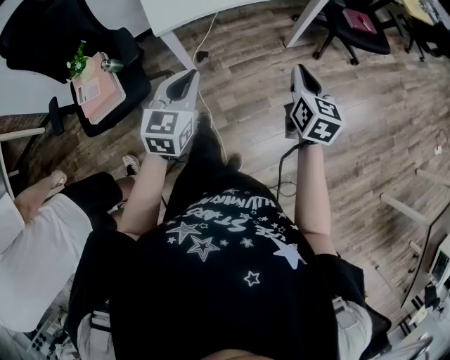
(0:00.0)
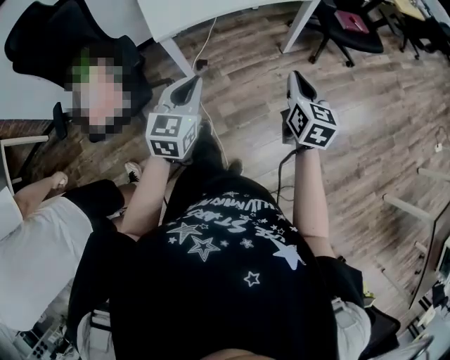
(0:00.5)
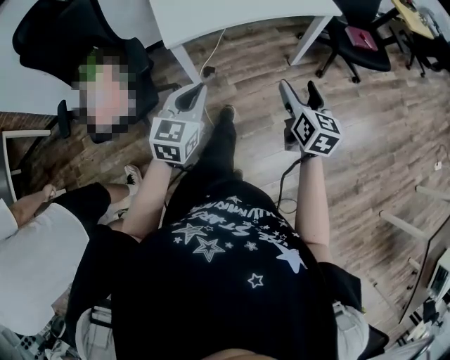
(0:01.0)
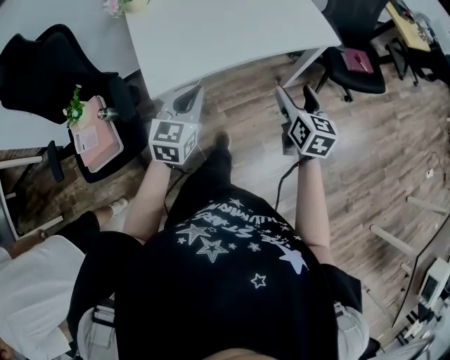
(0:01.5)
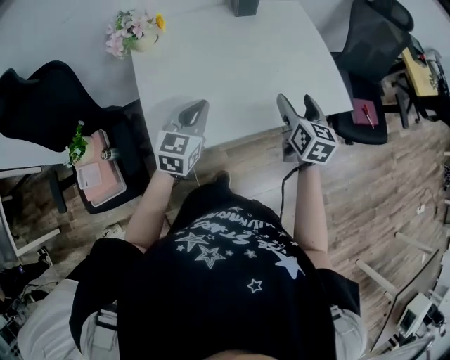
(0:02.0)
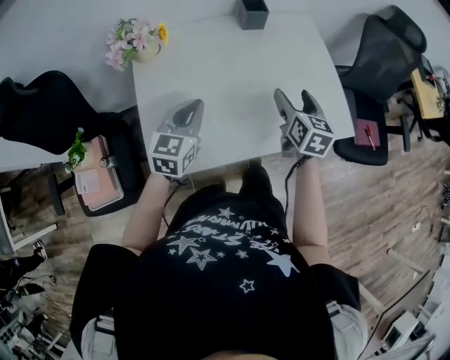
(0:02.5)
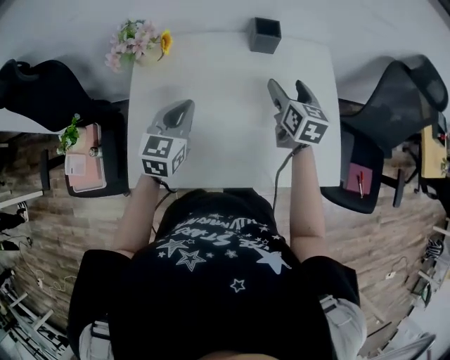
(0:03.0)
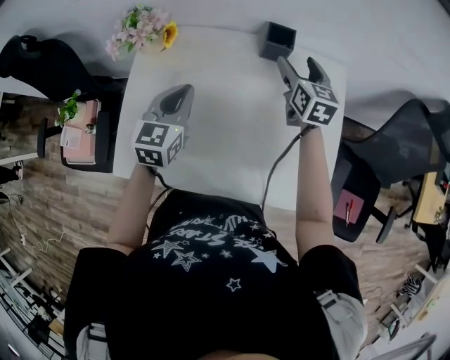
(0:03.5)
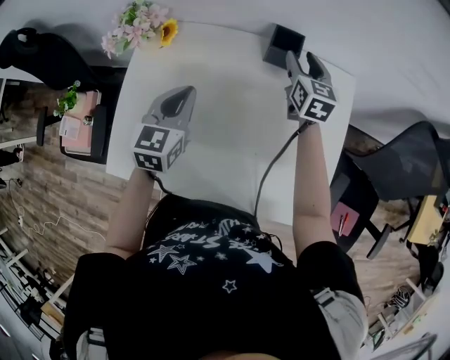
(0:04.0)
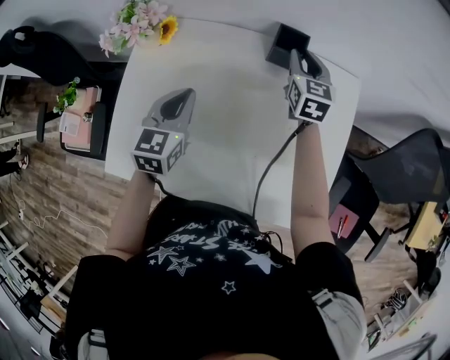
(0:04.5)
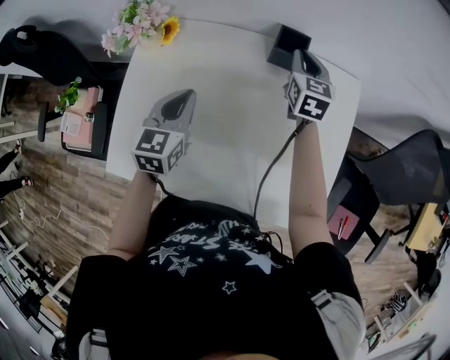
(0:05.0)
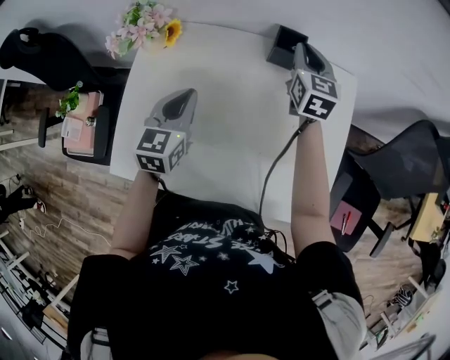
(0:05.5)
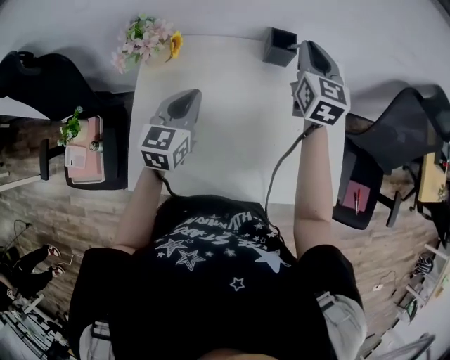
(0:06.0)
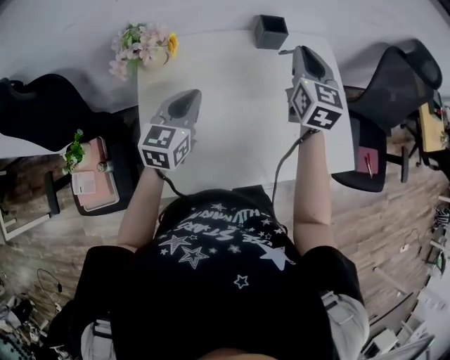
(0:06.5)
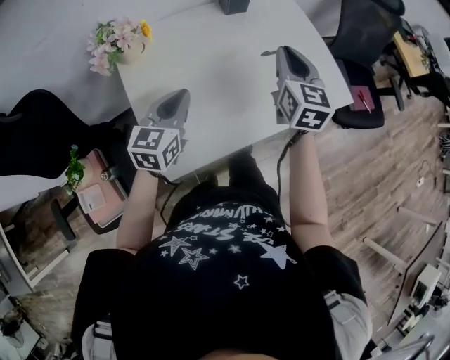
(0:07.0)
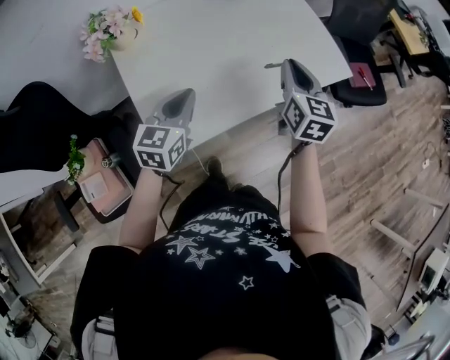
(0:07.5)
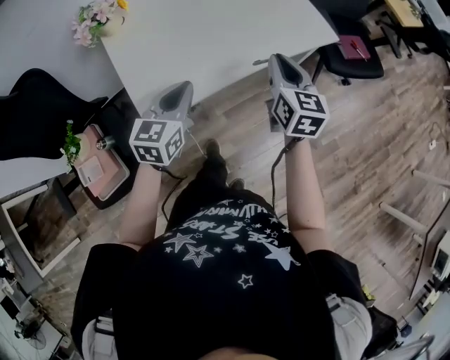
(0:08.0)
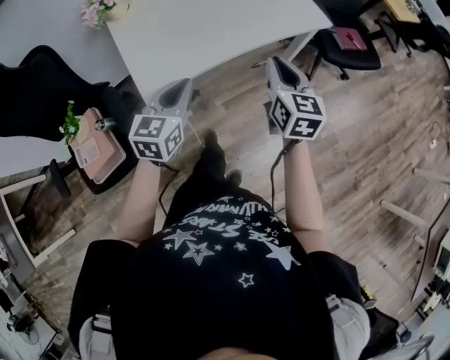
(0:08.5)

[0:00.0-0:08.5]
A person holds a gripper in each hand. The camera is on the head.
0:00.0 to 0:02.0: The two grippers go about 40 cm forward. The right gripper opens its fingers.
0:02.0 to 0:04.0: The left gripper changes place by roughly 25 cm, and turns by approximately 30 degrees, while the right gripper moves about 40 cm, rotates roughly 30 degrees, and closes up.
0:04.0 to 0:06.5: The right gripper is displaced backward and upward by about 20 cm, rotates approximately 20 degrees, and closes its fingers, while the left gripper is displaced to the left by roughly 5 cm, and rotates some 20 degrees.
0:06.5 to 0:08.5: The left gripper goes approximately 35 cm backward and to the right, while the right gripper goes roughly 40 cm backward.

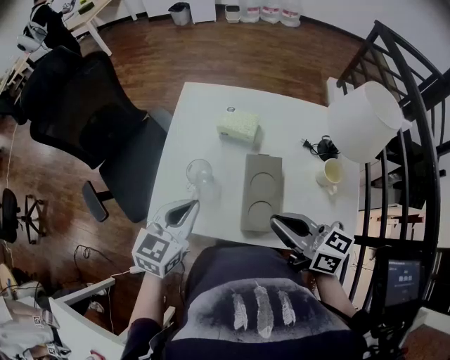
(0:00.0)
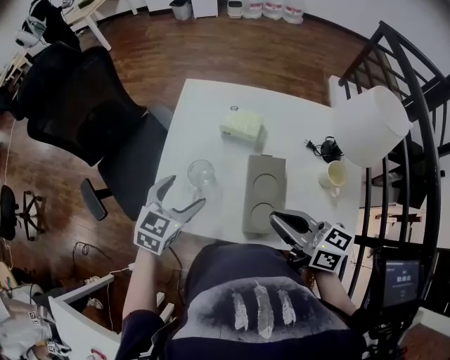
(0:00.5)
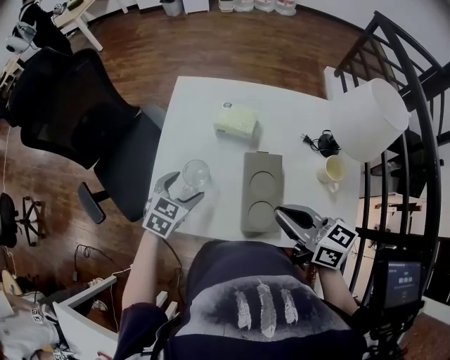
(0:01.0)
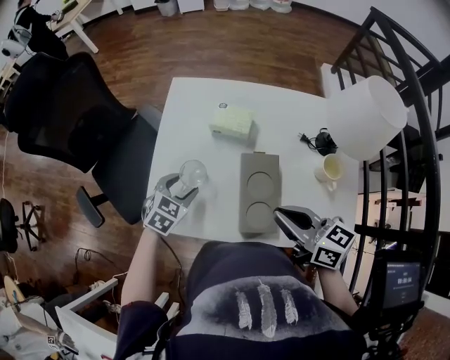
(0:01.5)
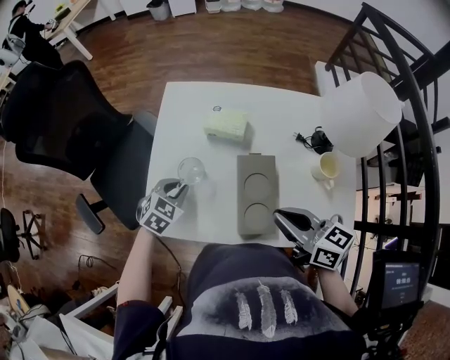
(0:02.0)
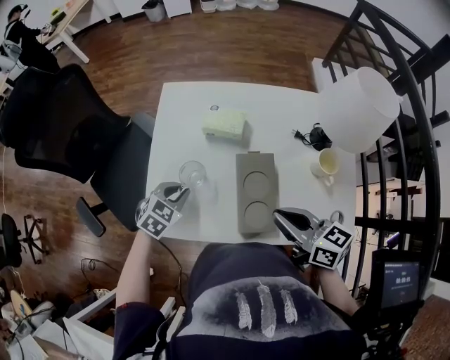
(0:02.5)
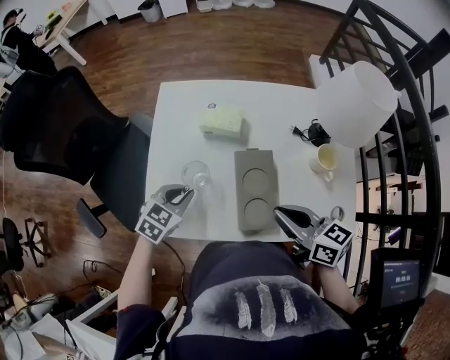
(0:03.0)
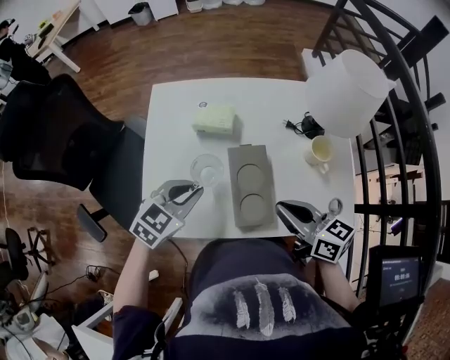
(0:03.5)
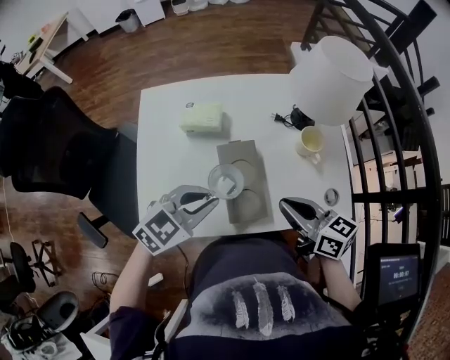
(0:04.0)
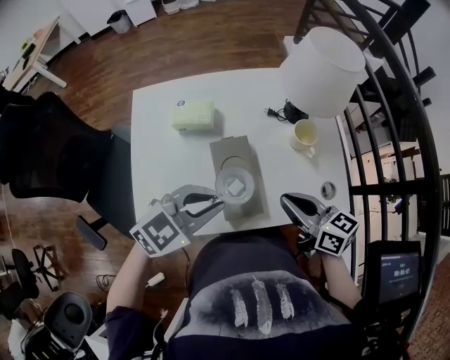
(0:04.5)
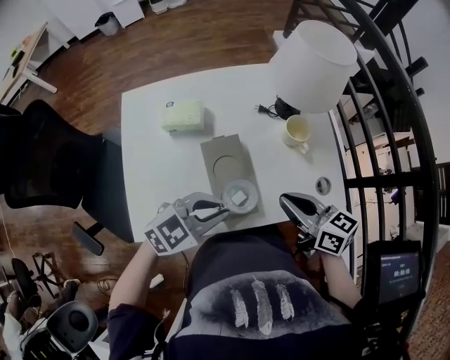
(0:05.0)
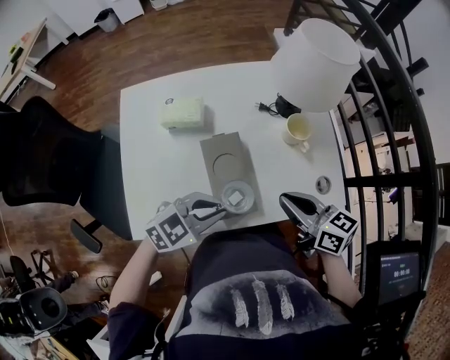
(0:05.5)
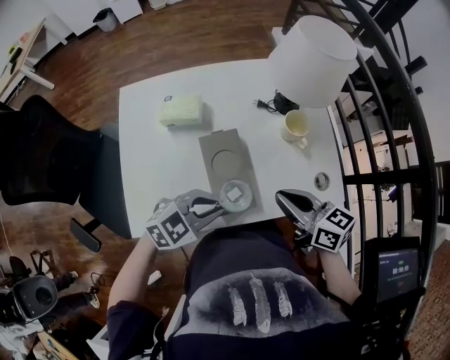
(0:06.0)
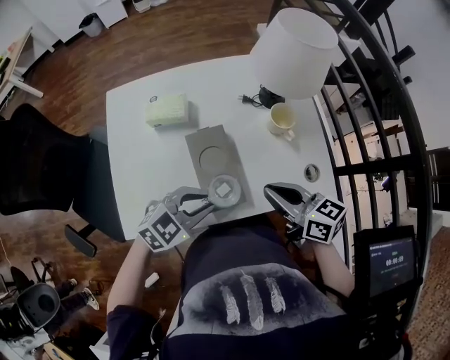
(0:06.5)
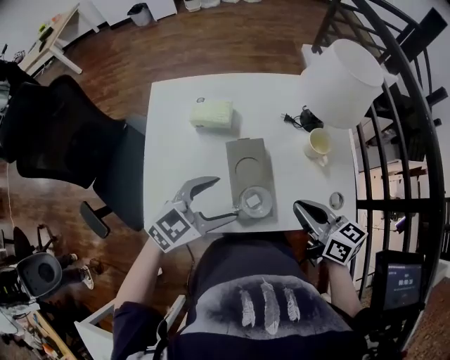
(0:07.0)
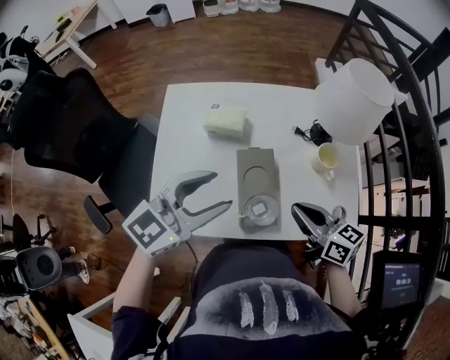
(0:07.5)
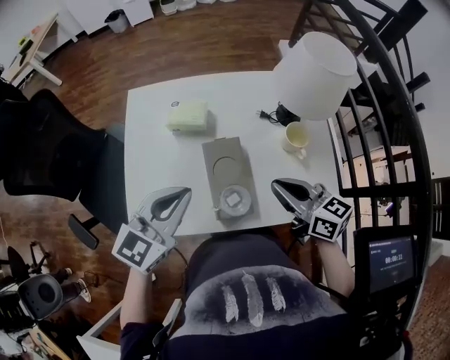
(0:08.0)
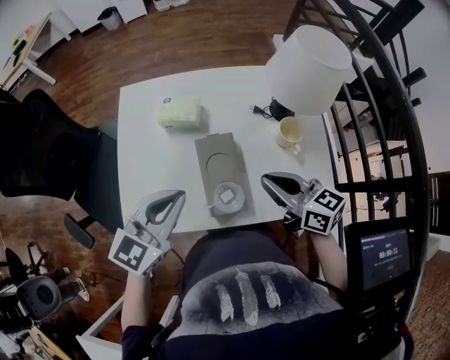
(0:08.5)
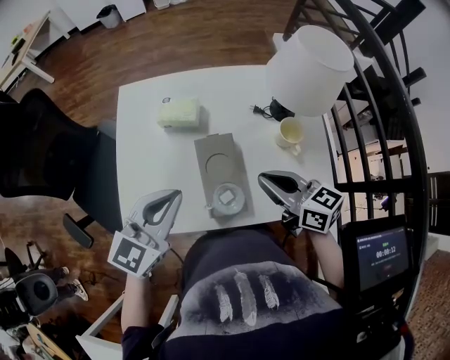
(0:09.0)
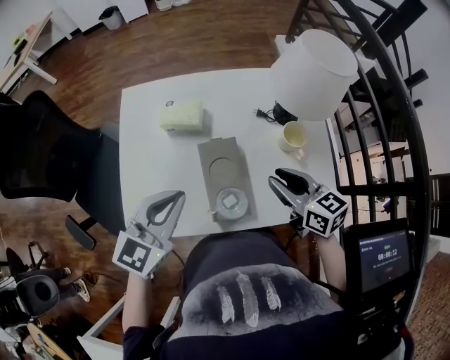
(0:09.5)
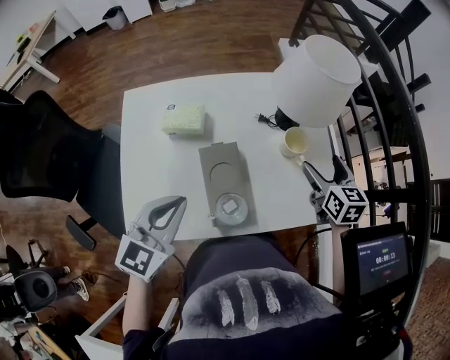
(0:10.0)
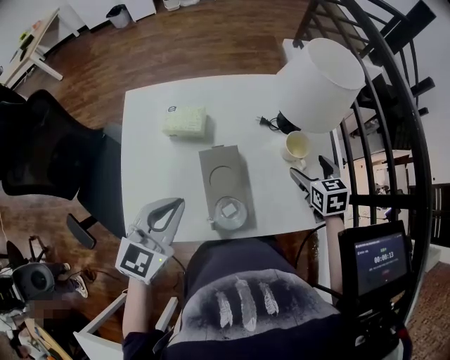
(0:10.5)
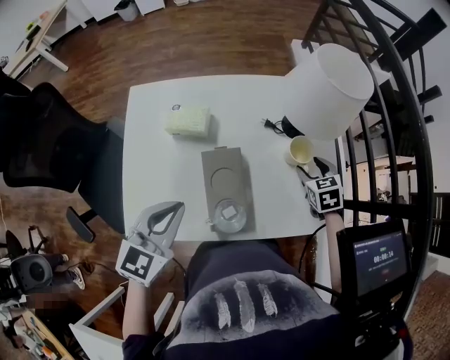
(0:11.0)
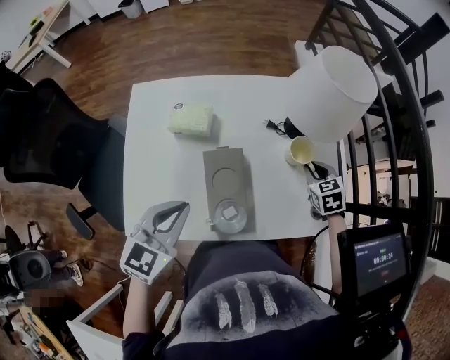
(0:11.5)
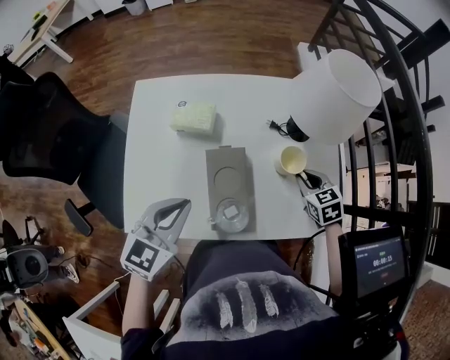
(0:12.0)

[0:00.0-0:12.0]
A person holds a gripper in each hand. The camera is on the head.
0:00.0 to 0:02.0: The left gripper heads downward and forward, covering some 20 cm, rotates approximately 30 degrees, and opens and closes again.
0:02.0 to 0:04.0: The right gripper is displaced to the right by approximately 5 cm. Meanwhile the left gripper heads to the right, upward and backward, covering approximately 20 cm, and rotates roughly 30 degrees.
0:04.0 to 0:06.0: The left gripper shifts by approximately 10 cm.
0:06.0 to 0:08.0: The left gripper heads upward, covering roughly 15 cm, rotates roughly 40 degrees, and opens, then closes once more; the right gripper moves roughly 5 cm.
0:08.0 to 0:10.0: The right gripper heads to the right and forward, covering roughly 20 cm, swivels roughly 40 degrees, and opens up.
0:10.0 to 0:12.0: The right gripper heads downward, covering roughly 10 cm, swivels about 30 degrees, and closes up.

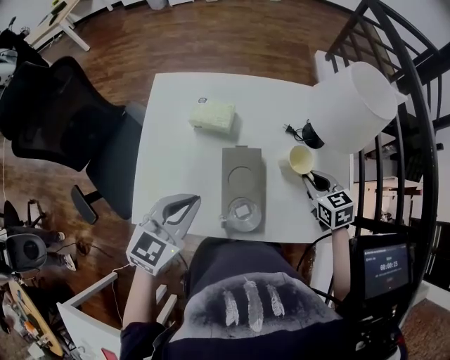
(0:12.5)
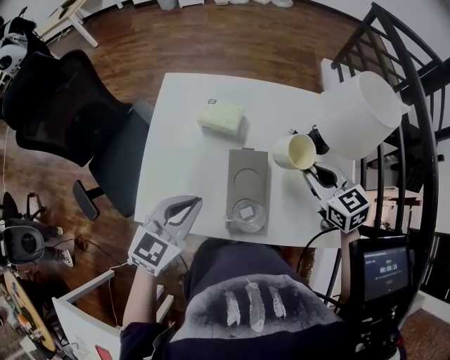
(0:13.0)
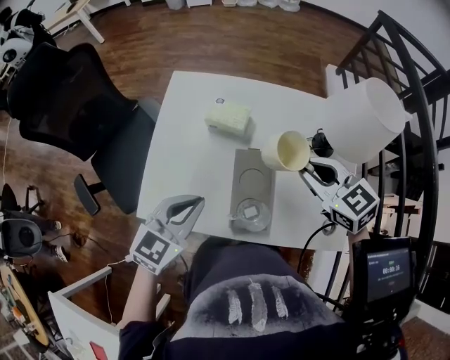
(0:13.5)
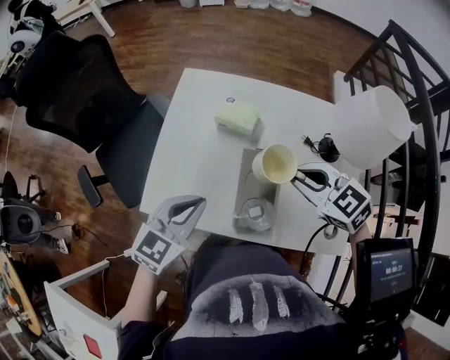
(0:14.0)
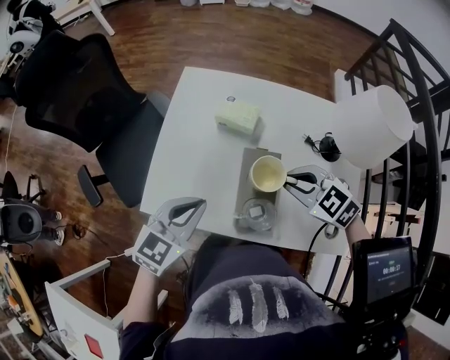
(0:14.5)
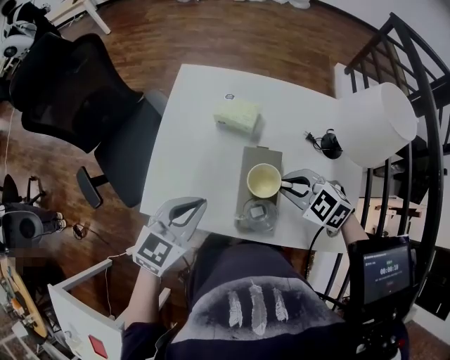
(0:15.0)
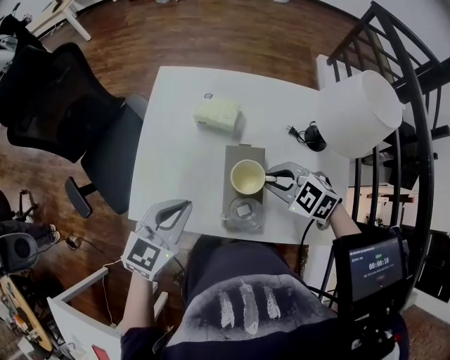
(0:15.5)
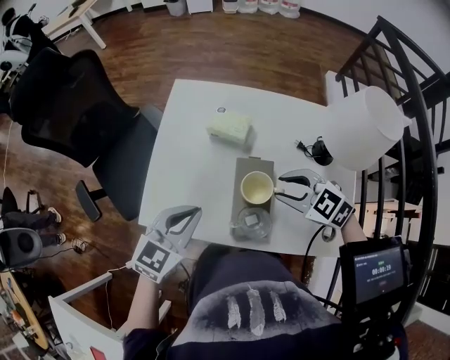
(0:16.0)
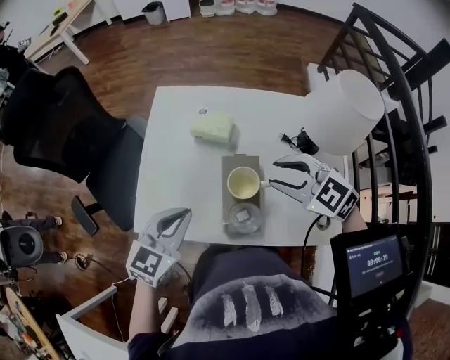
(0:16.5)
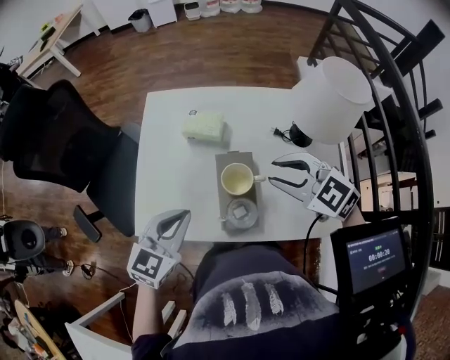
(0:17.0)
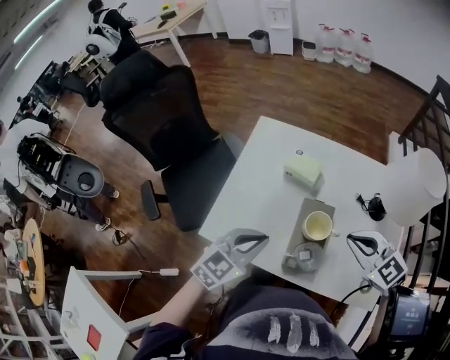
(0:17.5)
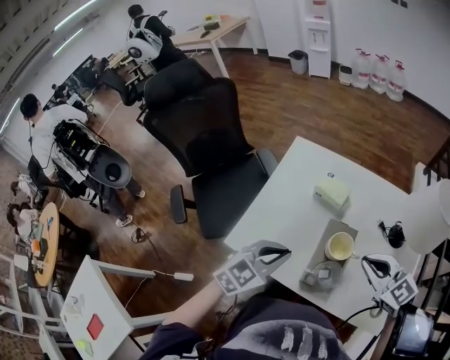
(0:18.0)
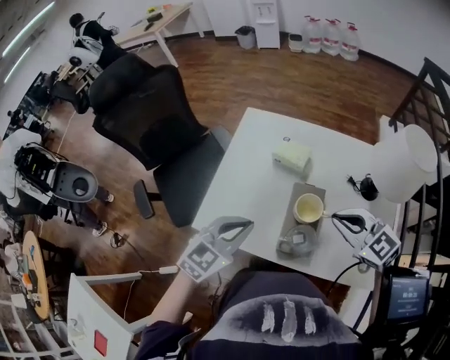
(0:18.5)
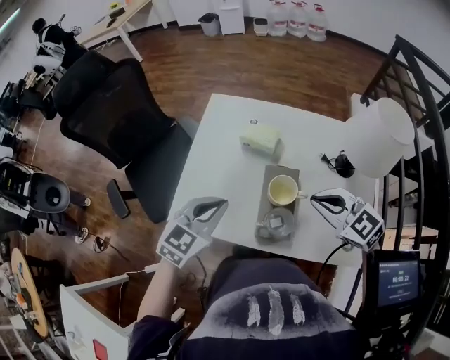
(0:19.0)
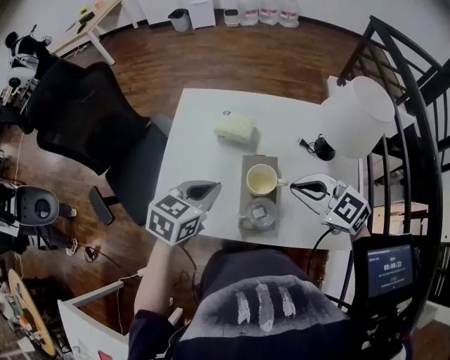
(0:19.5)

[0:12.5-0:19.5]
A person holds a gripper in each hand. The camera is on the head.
0:12.5 to 0:14.5: The right gripper moves to the left and upward, some 20 cm, and swivels approximately 50 degrees.
0:14.5 to 0:16.0: The grippers move only a little.
0:16.0 to 0:17.5: The right gripper heads upward, covering some 5 cm.
0:17.5 to 0:19.5: The left gripper changes place by about 5 cm.
